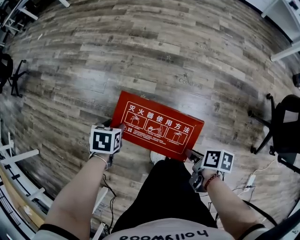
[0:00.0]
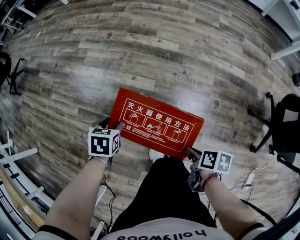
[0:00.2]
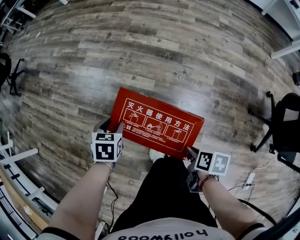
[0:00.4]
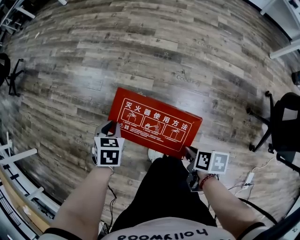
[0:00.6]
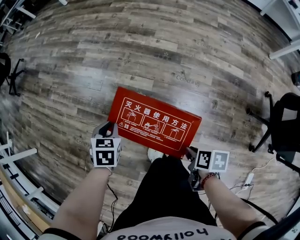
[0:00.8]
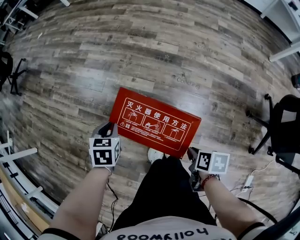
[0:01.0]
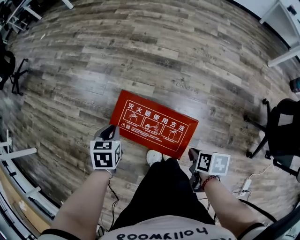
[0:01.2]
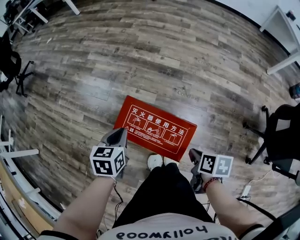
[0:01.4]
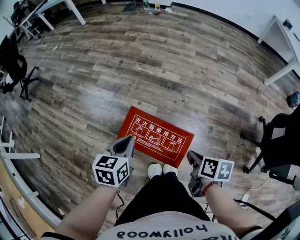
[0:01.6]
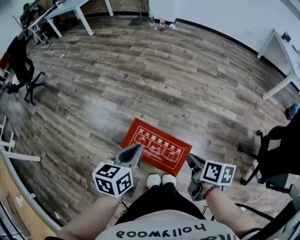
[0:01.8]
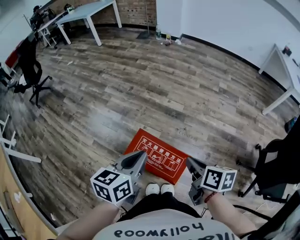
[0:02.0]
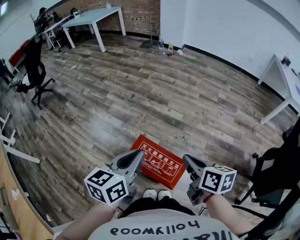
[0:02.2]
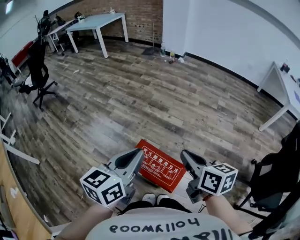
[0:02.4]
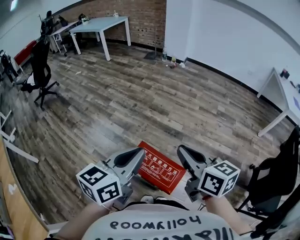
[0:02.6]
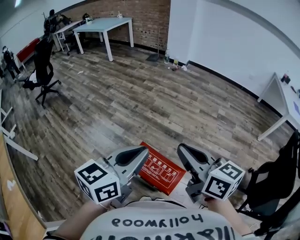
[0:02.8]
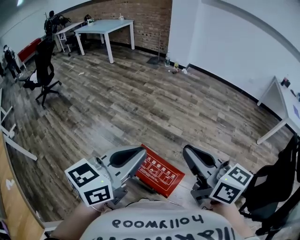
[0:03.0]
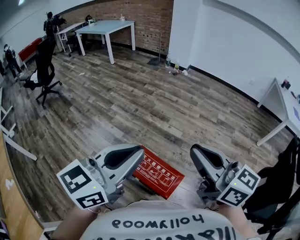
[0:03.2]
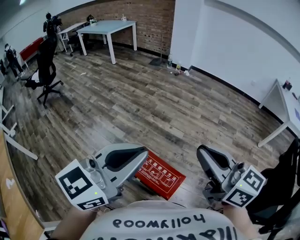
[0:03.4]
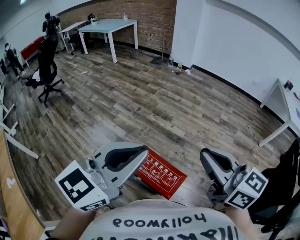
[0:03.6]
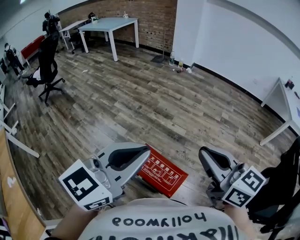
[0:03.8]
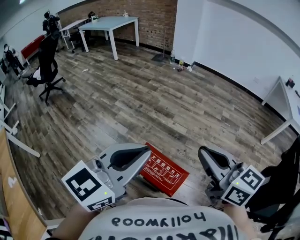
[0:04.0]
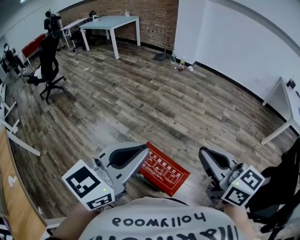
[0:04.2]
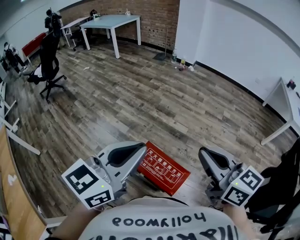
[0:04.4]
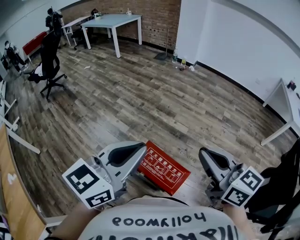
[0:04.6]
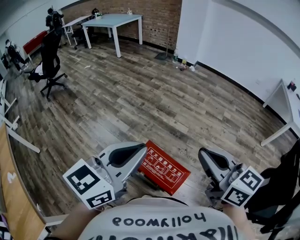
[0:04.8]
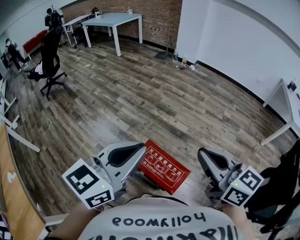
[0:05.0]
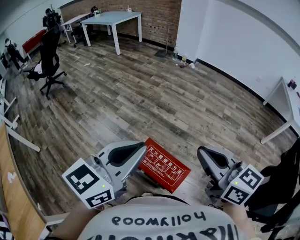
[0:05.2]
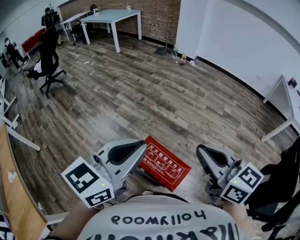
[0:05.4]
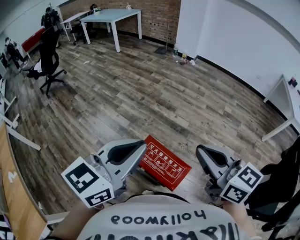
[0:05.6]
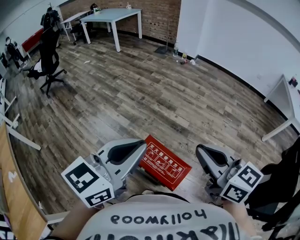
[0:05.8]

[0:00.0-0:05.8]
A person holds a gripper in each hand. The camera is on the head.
0:00.0 to 0:01.4: The grippers both shift upward by roughly 10 cm. The right gripper closes. The left gripper swivels some 30 degrees, and closes up.
0:01.4 to 0:02.8: The grippers both shift upward by roughly 40 cm. The right gripper tips its fingers upward by some 50 degrees. Meanwhile the left gripper points its fingers about 40 degrees further upward.
0:04.4 to 0:05.8: There are only small adjustments of the grippers.

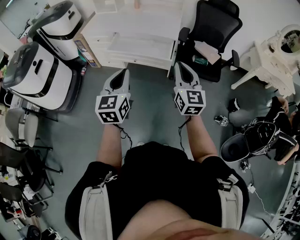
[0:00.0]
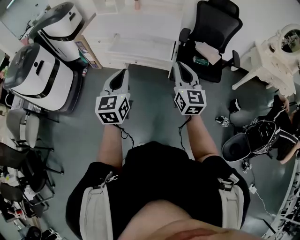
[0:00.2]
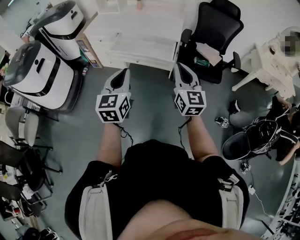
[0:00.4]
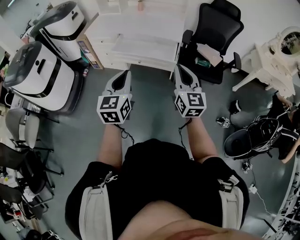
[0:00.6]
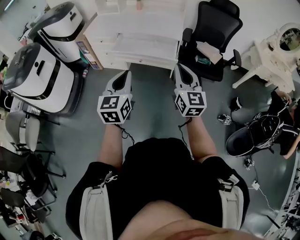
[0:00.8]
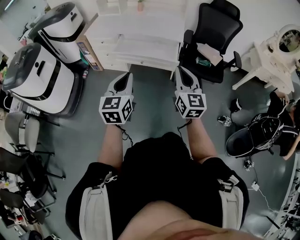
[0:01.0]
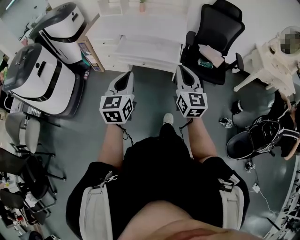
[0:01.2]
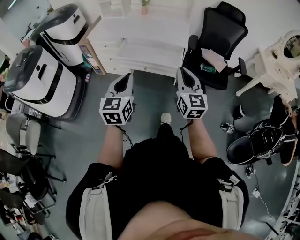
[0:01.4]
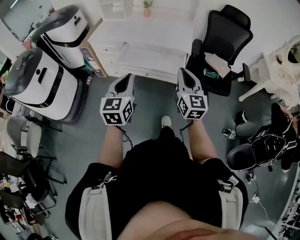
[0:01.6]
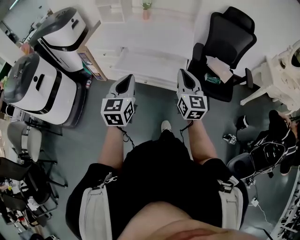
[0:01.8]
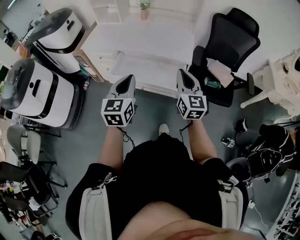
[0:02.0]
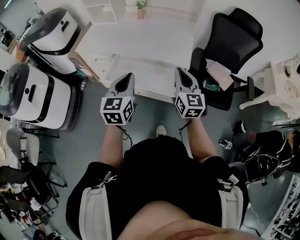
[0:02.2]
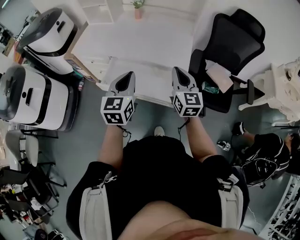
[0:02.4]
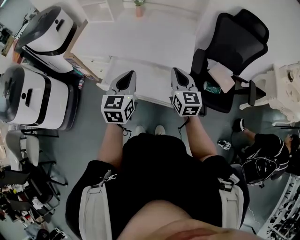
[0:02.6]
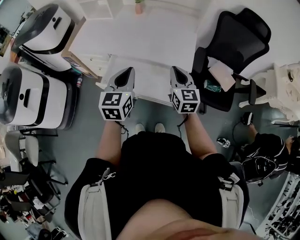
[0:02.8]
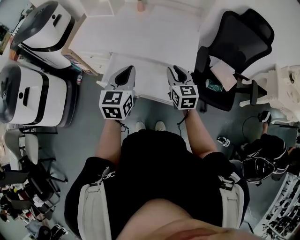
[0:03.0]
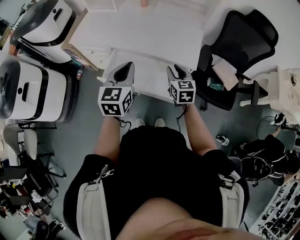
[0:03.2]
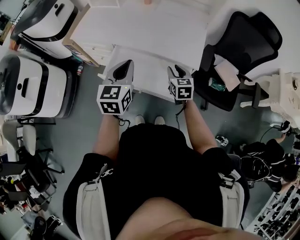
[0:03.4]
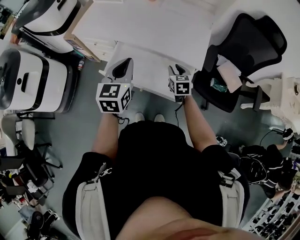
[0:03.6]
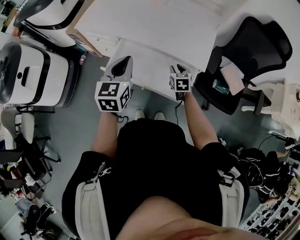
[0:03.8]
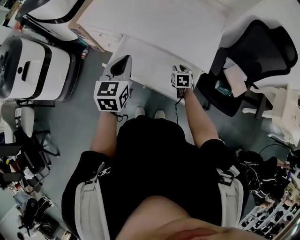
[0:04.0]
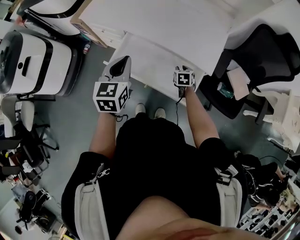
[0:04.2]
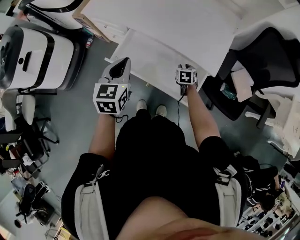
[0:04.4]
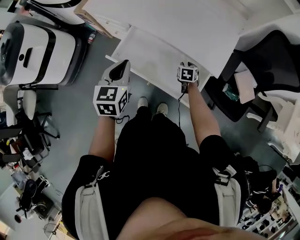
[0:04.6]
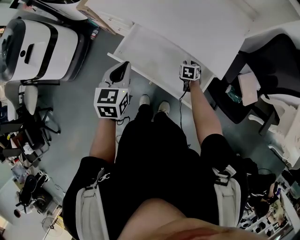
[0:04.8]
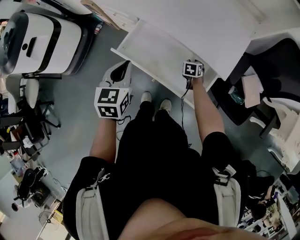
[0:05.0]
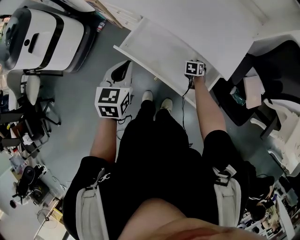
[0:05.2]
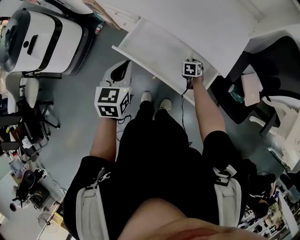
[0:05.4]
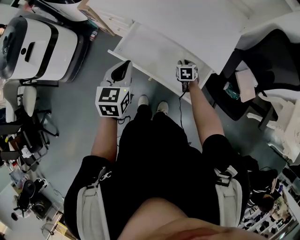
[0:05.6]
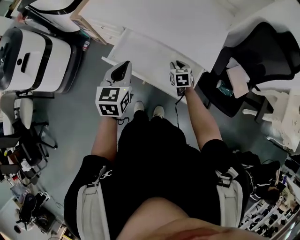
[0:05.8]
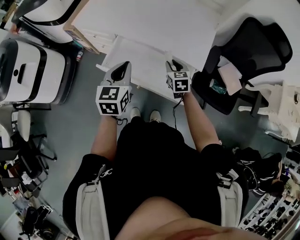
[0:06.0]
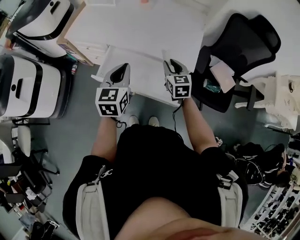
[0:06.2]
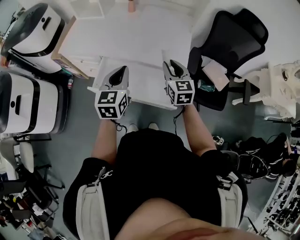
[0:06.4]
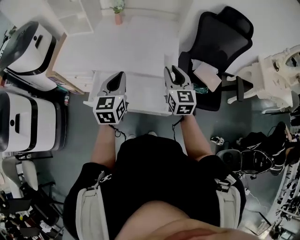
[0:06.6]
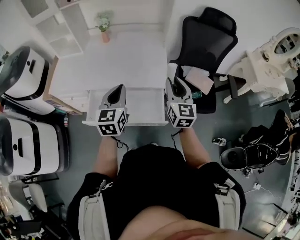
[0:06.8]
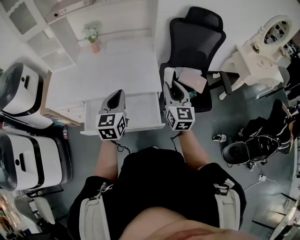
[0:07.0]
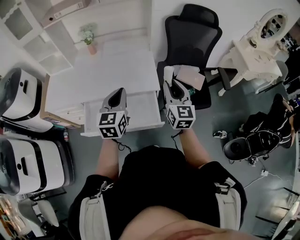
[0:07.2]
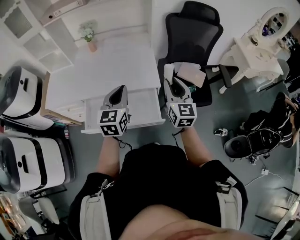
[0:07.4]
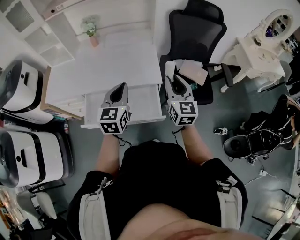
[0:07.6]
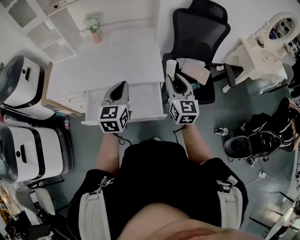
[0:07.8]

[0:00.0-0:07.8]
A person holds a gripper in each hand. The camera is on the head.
0:00.0 to 0:01.6: The grippers both shift forward and to the left by approximately 15 cm.
0:01.6 to 0:03.2: The left gripper is displaced forward by about 35 cm. Meanwhile the right gripper moves forward and downward, roughly 40 cm, swivels some 30 degrees, and opens up.
0:03.2 to 0:04.6: The right gripper shifts approximately 30 cm downward and forward, and points its fingers about 30 degrees further downward; the left gripper is displaced downward and to the left by about 10 cm.
0:04.6 to 0:06.2: The left gripper goes about 10 cm to the right and upward. Meanwhile the right gripper goes roughly 25 cm upward, and tips its fingers upward by about 30 degrees.
0:06.2 to 0:07.8: The right gripper goes roughly 25 cm to the right and upward, and rotates approximately 40 degrees, while the left gripper shifts about 15 cm to the right and upward, and turns by approximately 20 degrees.

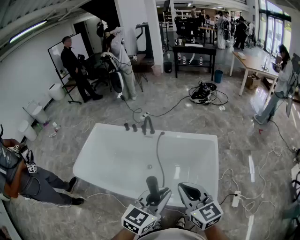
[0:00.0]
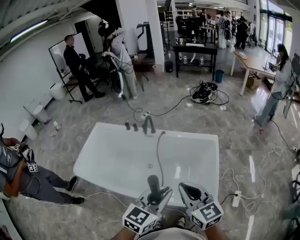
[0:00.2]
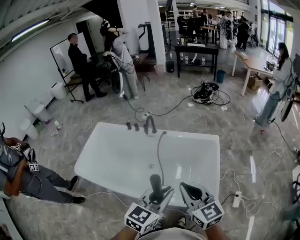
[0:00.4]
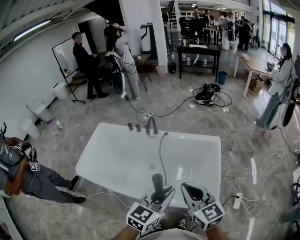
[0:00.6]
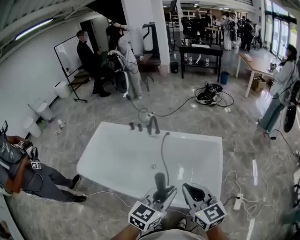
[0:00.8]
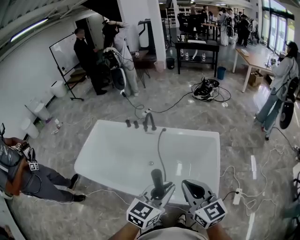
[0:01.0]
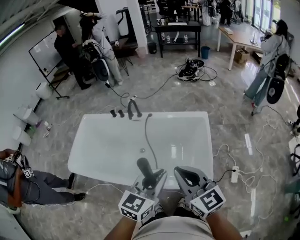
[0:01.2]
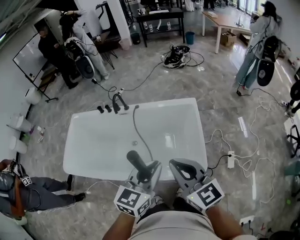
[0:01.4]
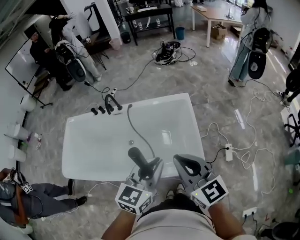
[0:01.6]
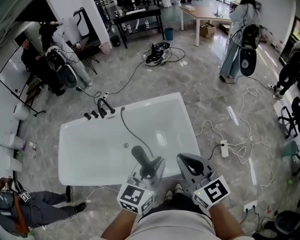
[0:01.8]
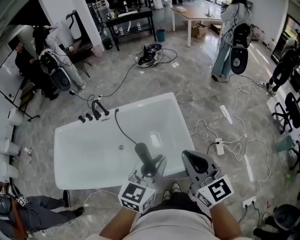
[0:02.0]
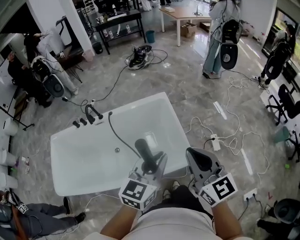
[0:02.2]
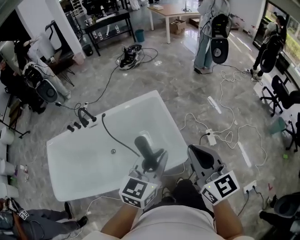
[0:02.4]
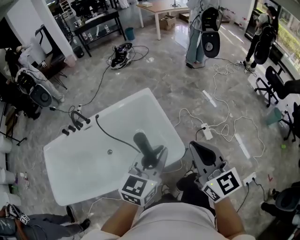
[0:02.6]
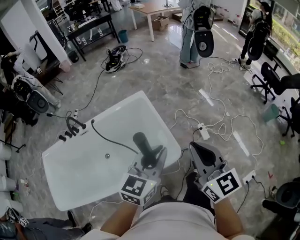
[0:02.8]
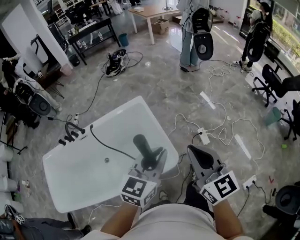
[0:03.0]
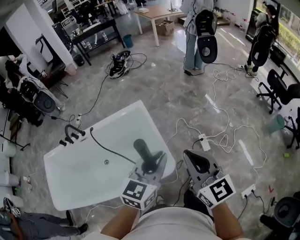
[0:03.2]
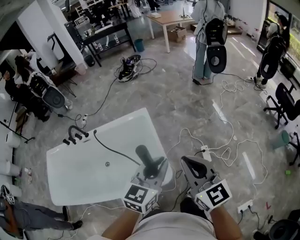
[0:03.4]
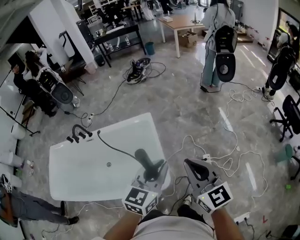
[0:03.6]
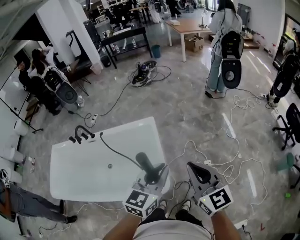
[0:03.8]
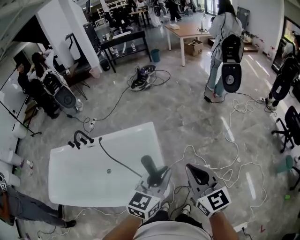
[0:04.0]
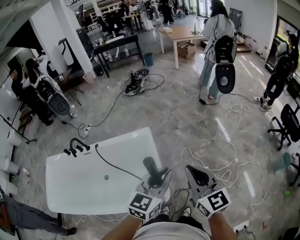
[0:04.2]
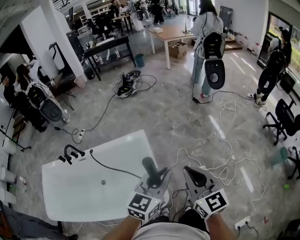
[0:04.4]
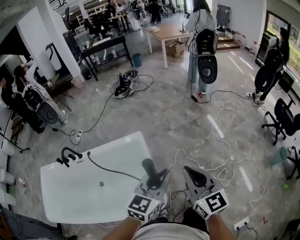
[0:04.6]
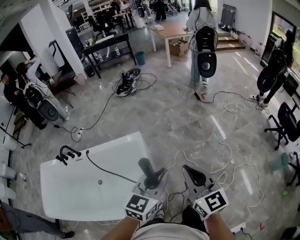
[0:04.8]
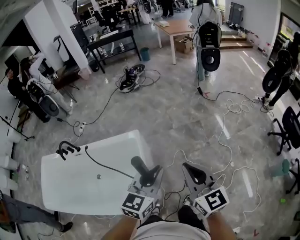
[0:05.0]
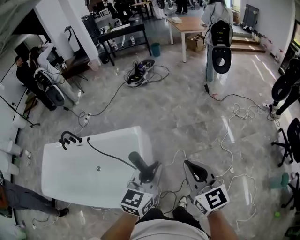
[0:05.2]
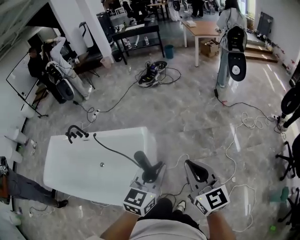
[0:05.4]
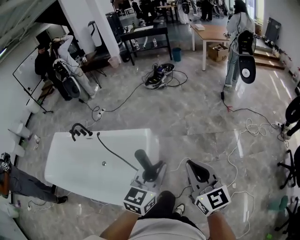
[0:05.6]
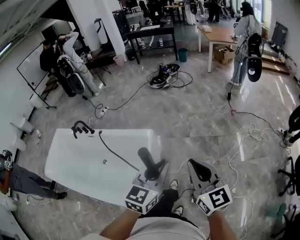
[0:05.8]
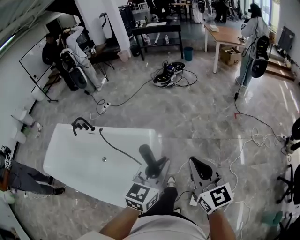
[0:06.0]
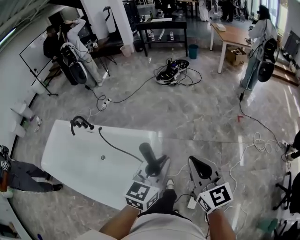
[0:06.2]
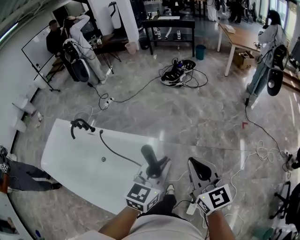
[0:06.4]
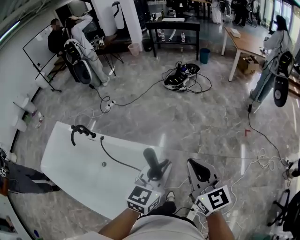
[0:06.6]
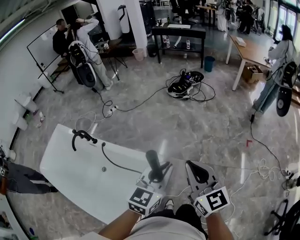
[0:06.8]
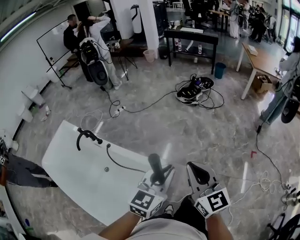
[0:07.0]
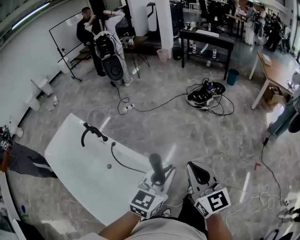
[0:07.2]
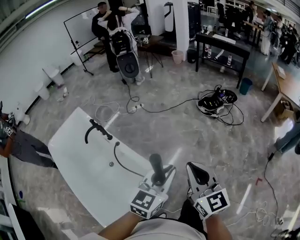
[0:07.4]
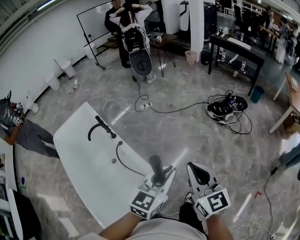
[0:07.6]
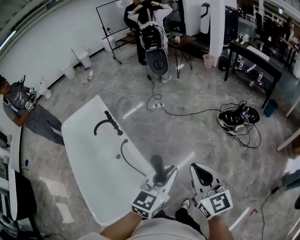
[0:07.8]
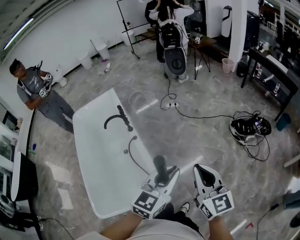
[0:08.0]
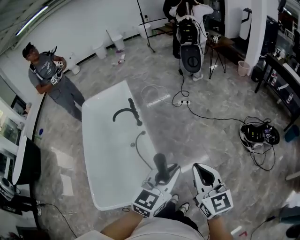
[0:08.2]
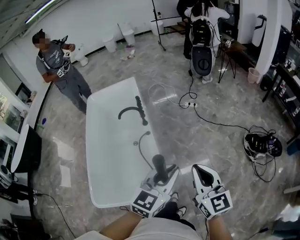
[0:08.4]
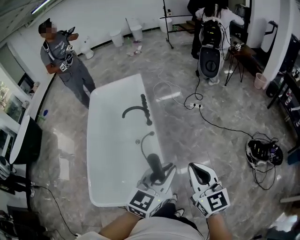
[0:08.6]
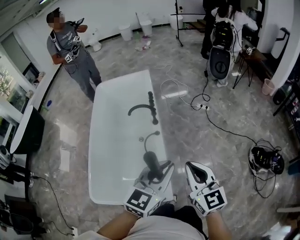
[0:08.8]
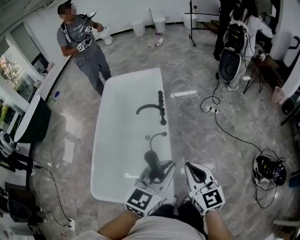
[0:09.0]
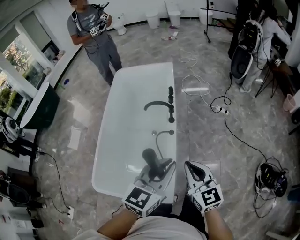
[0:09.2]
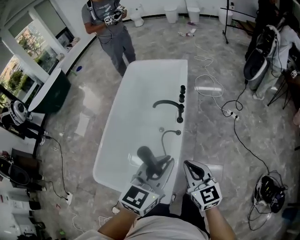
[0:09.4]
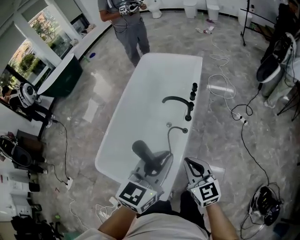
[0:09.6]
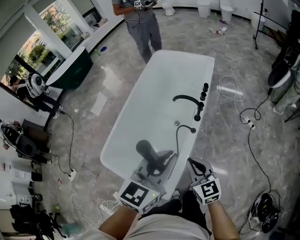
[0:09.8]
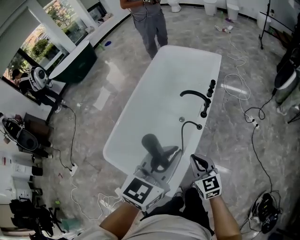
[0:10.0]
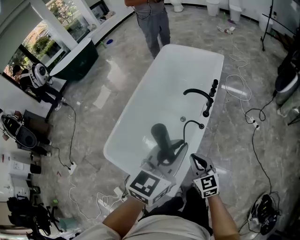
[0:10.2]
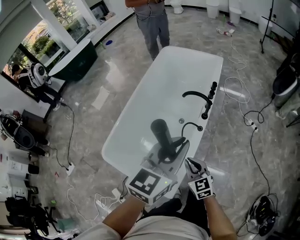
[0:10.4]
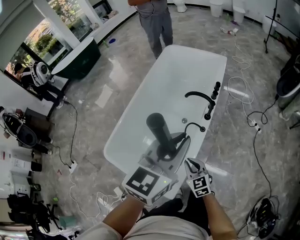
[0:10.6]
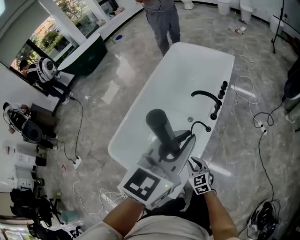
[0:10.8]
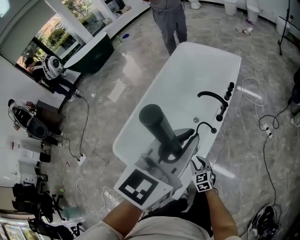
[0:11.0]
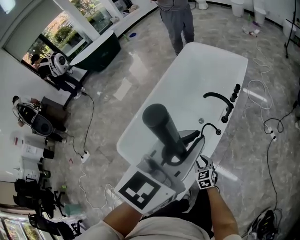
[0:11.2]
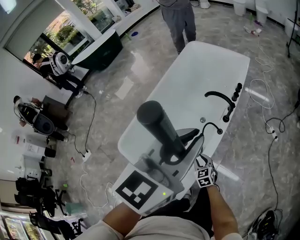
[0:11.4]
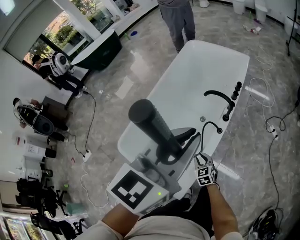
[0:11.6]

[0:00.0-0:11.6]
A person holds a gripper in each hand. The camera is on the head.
0:00.0 to 0:01.4: Both grippers travel together to the right, approximately 5 cm.
0:01.4 to 0:02.8: The right gripper shifts by some 20 cm, and rotates approximately 40 degrees, while the left gripper ends up some 15 cm from where it was, and changes its angle by some 30 degrees.
0:02.8 to 0:04.4: The grippers both shift forward and to the right by about 20 cm.
0:04.4 to 0:05.8: Both grippers move forward and to the right, about 20 cm. The right gripper rotates approximately 20 degrees; the left gripper turns by approximately 20 degrees.
0:05.8 to 0:07.2: Both grippers move forward, about 35 cm. The right gripper swivels about 20 degrees.
0:07.2 to 0:08.8: The left gripper shifts by some 25 cm, and swivels approximately 50 degrees; the right gripper shifts by roughly 30 cm, and rotates some 50 degrees.
0:08.8 to 0:10.2: The right gripper is displaced downward by some 20 cm, and rotates roughly 40 degrees. The left gripper changes place by approximately 15 cm, and rotates about 30 degrees.
0:10.2 to 0:11.6: The right gripper goes some 20 cm downward, while the left gripper travels upward by roughly 10 cm.
